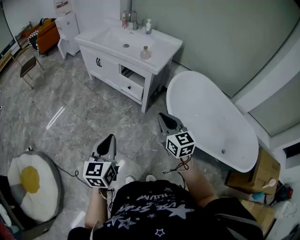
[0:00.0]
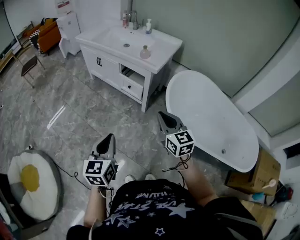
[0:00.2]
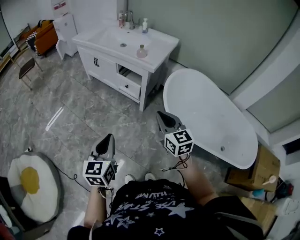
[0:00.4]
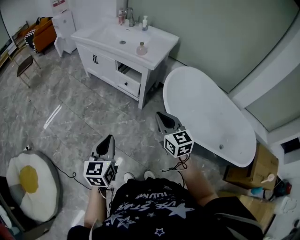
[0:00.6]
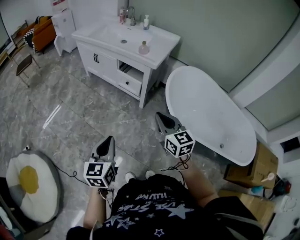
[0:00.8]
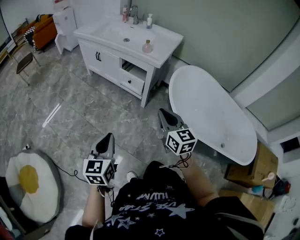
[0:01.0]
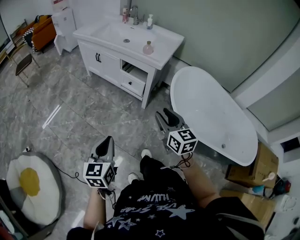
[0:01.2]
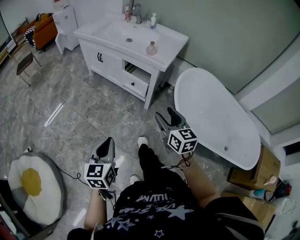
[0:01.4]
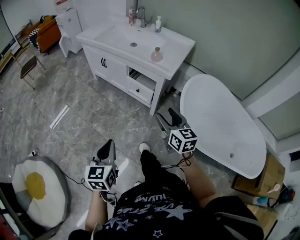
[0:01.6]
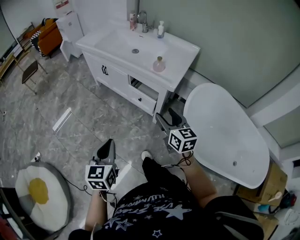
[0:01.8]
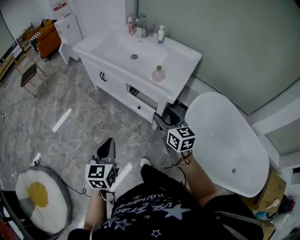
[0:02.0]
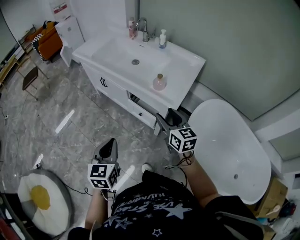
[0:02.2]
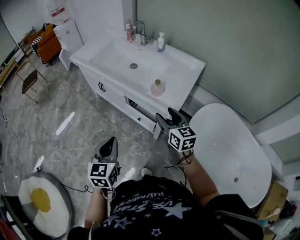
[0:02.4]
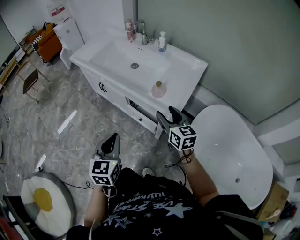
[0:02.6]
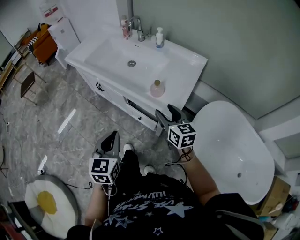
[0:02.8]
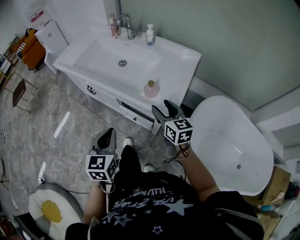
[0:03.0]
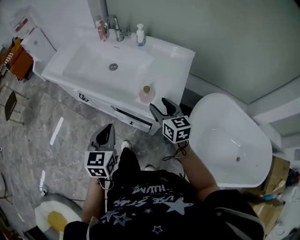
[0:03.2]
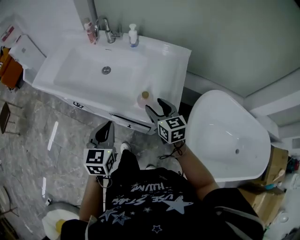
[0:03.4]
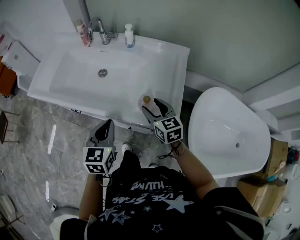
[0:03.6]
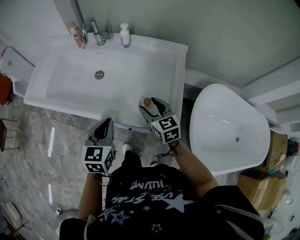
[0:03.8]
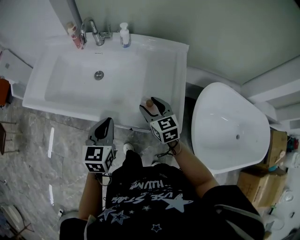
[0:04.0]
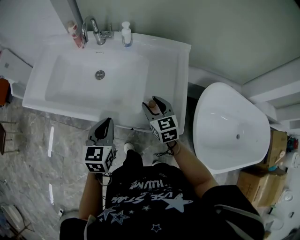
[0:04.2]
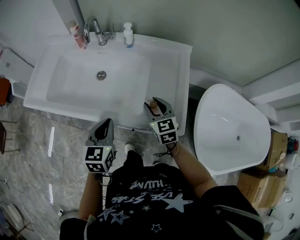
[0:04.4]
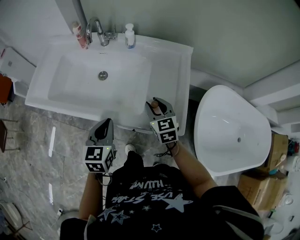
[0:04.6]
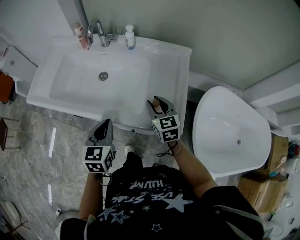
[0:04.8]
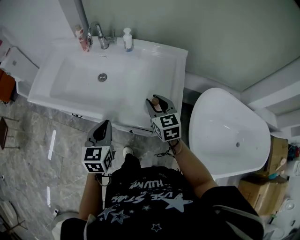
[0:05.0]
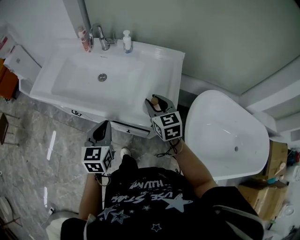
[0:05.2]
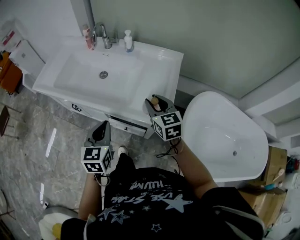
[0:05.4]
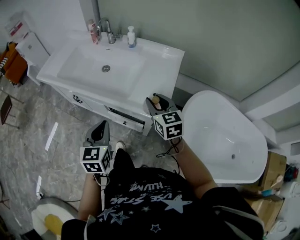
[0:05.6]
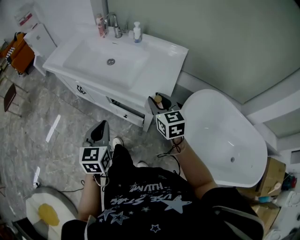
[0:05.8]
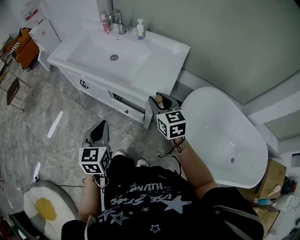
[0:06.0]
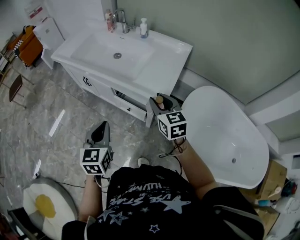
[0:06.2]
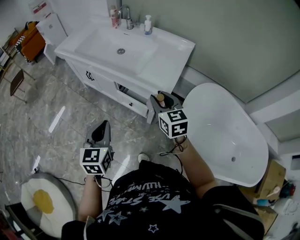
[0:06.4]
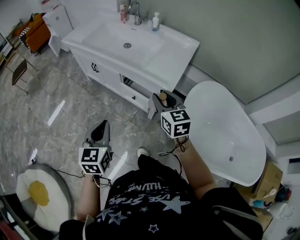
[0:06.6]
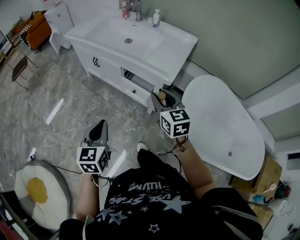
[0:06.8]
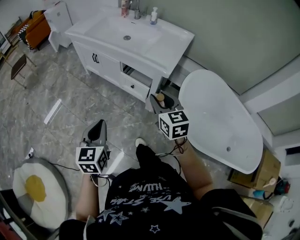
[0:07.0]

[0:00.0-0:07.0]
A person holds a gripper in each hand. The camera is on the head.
0:00.0 to 0:01.4: The left gripper travels to the left and downward by roughly 10 cm; the right gripper ends up roughly 5 cm from where it was, and opens.
0:01.4 to 0:02.8: Both grippers move forward, roughly 40 cm.
0:02.8 to 0:04.2: The right gripper travels forward by some 20 cm, and swivels roughly 30 degrees. The left gripper goes about 30 cm forward, and changes its angle by roughly 20 degrees.
0:04.2 to 0:05.6: The left gripper heads backward, covering roughly 15 cm, while the right gripper moves backward, upward and to the right, roughly 15 cm.
0:05.6 to 0:07.0: The two grippers go about 30 cm backward.

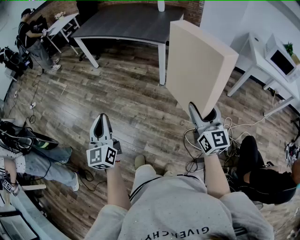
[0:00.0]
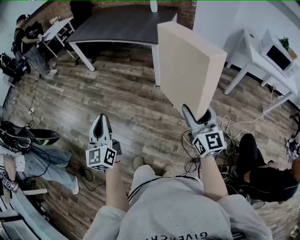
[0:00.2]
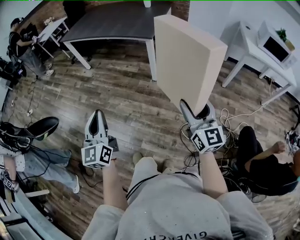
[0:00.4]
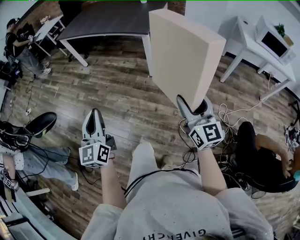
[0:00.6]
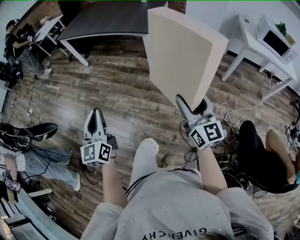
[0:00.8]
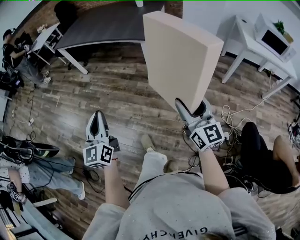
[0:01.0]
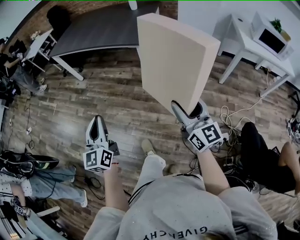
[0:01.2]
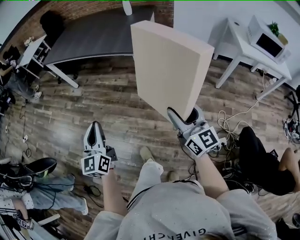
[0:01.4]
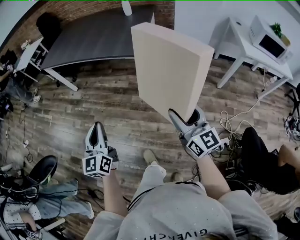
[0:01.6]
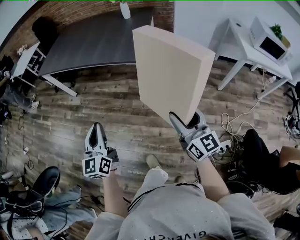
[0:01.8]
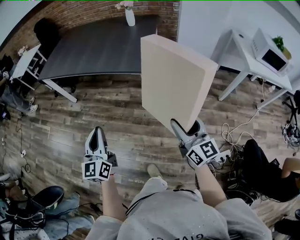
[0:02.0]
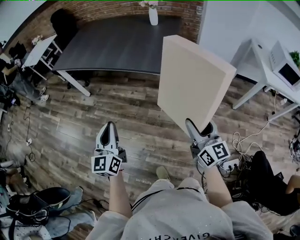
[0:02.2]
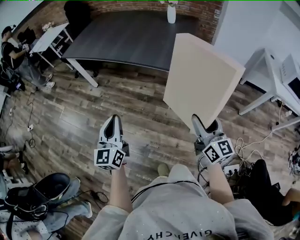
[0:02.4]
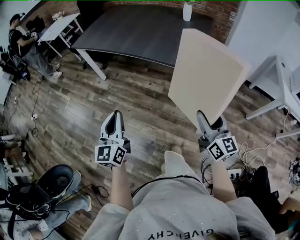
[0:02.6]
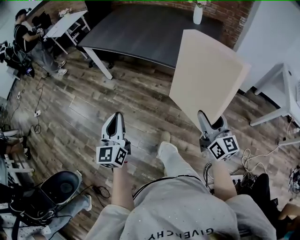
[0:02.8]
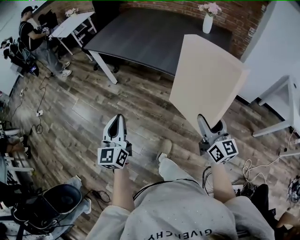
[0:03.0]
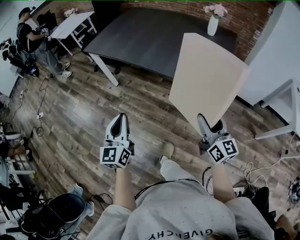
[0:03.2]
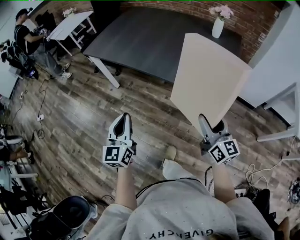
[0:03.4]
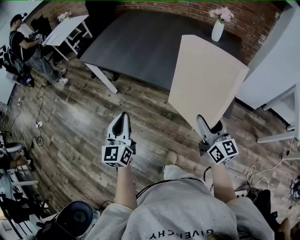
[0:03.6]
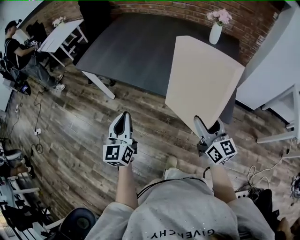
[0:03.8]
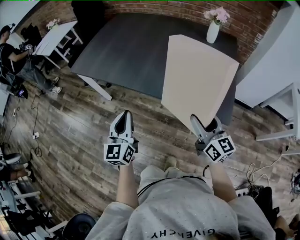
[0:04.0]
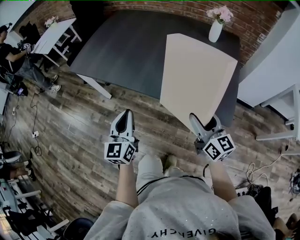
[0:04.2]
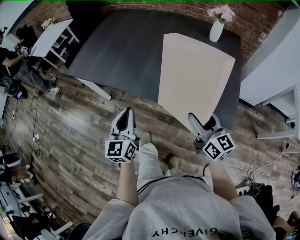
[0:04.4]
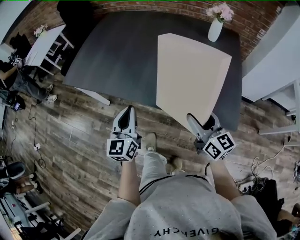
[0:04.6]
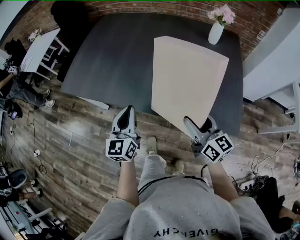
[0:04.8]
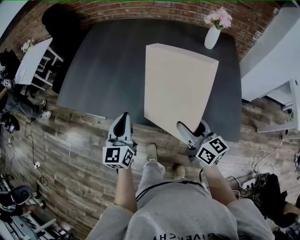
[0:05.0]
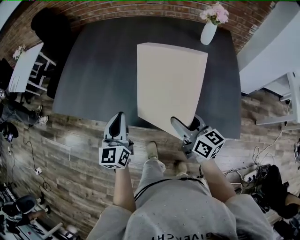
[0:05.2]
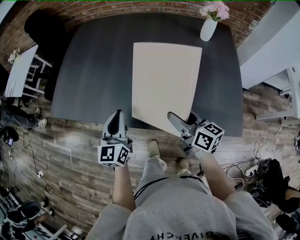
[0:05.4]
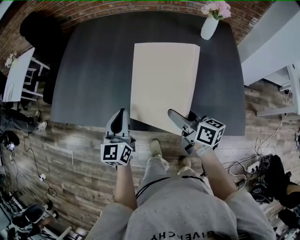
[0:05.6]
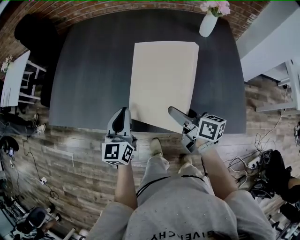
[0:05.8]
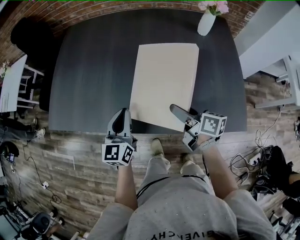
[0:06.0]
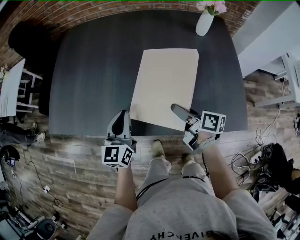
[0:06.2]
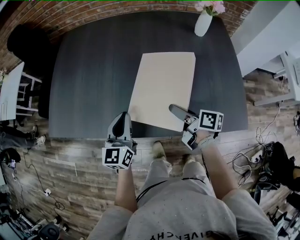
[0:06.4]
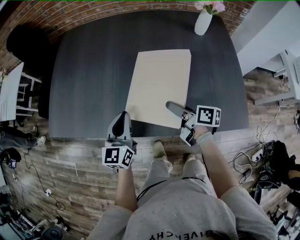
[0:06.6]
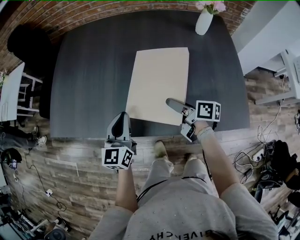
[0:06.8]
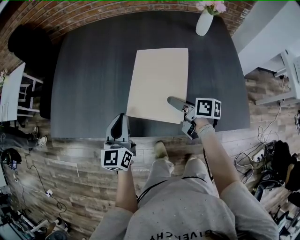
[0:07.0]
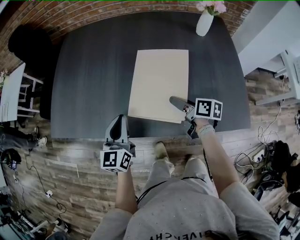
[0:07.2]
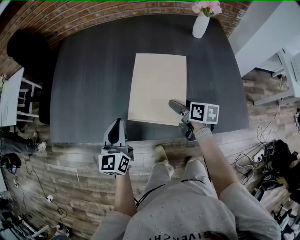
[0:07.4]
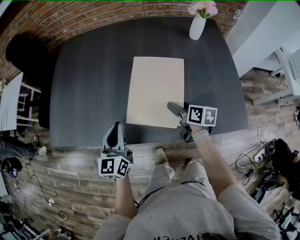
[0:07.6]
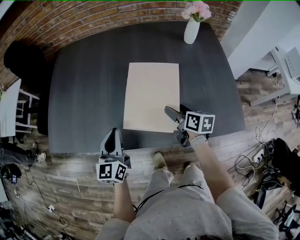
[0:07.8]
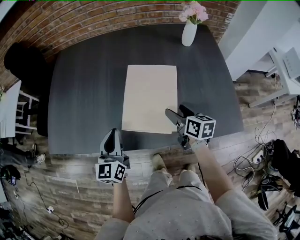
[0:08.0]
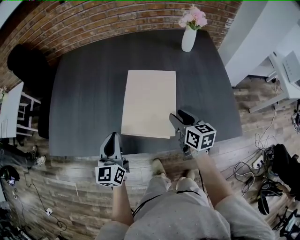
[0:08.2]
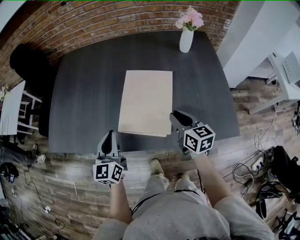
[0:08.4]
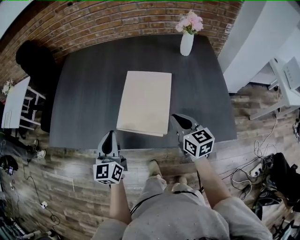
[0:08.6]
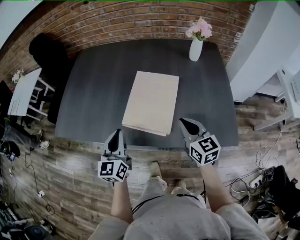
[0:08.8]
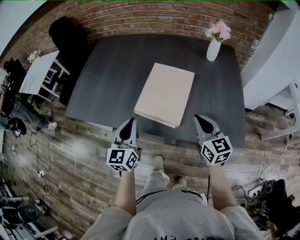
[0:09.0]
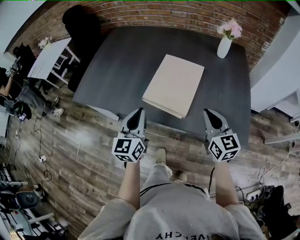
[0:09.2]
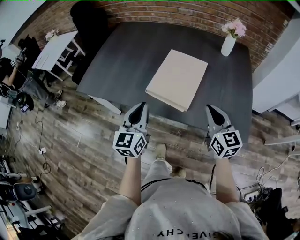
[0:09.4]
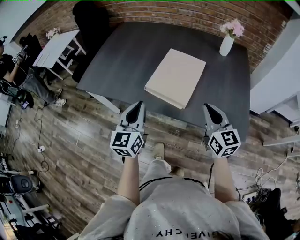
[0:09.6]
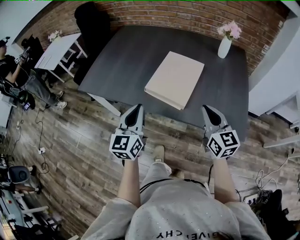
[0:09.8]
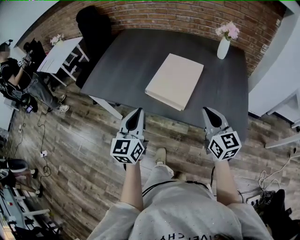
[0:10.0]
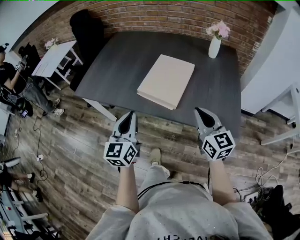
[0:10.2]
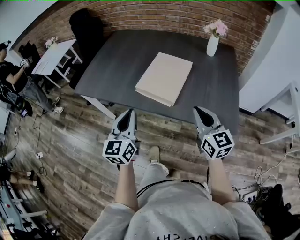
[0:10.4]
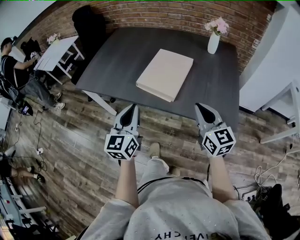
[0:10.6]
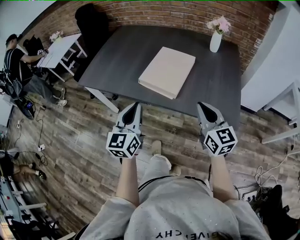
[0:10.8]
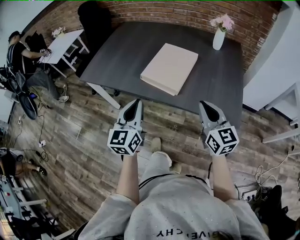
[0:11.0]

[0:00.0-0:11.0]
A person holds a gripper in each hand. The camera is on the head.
0:00.0 to 0:01.6: The grippers both shift forward by some 20 cm.
0:01.6 to 0:03.2: Both grippers are carried forward and to the left, roughly 40 cm.
0:03.2 to 0:04.8: The grippers both shift forward by some 35 cm.
0:04.8 to 0:06.2: The left gripper shifts about 15 cm forward; the right gripper heads forward and downward, covering about 20 cm, and rotates around the line of its fingers by approximately 40 degrees, clockwise from behind.
0:06.2 to 0:07.8: The right gripper moves some 5 cm, and rotates some 20 degrees.
0:07.8 to 0:09.4: The left gripper travels backward, upward and to the right by some 20 cm, while the right gripper is displaced upward and backward by about 25 cm, rotates around the line of its fingers by roughly 40 degrees, counterclockwise from behind, and closes up.
0:09.4 to 0:11.0: The two grippers go roughly 10 cm backward.

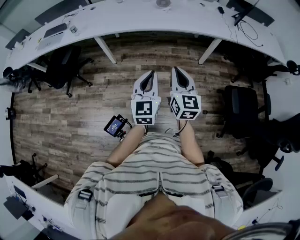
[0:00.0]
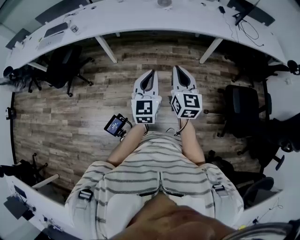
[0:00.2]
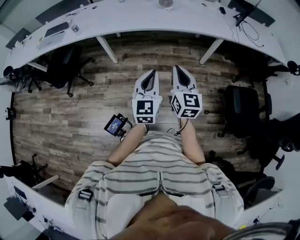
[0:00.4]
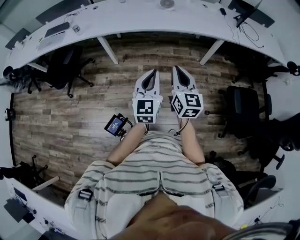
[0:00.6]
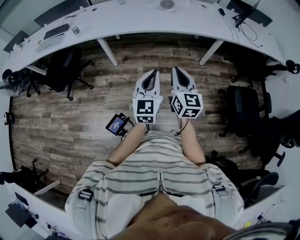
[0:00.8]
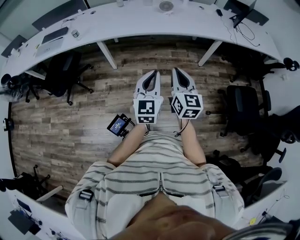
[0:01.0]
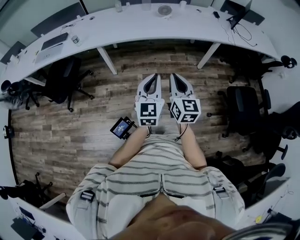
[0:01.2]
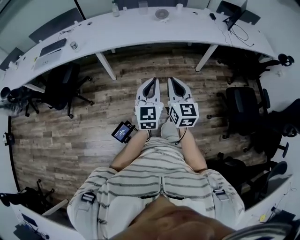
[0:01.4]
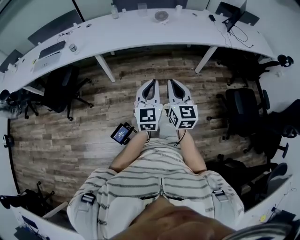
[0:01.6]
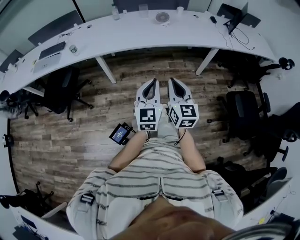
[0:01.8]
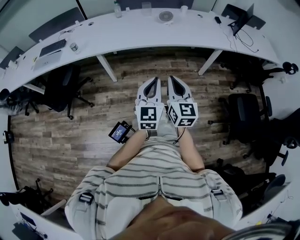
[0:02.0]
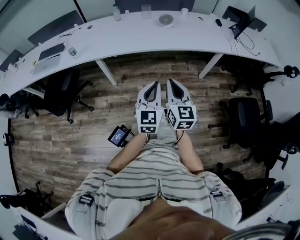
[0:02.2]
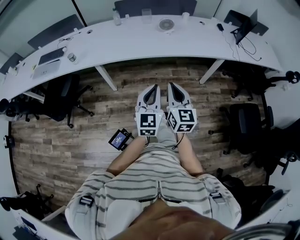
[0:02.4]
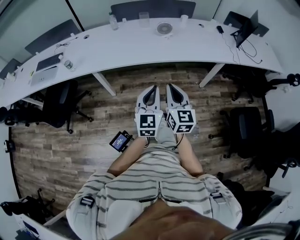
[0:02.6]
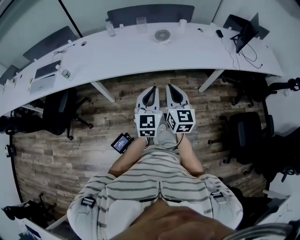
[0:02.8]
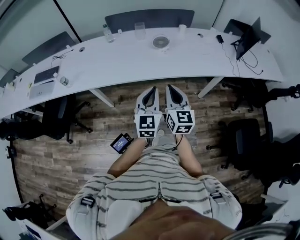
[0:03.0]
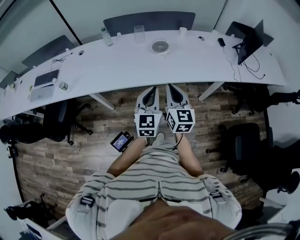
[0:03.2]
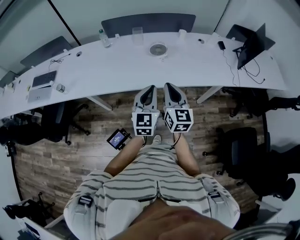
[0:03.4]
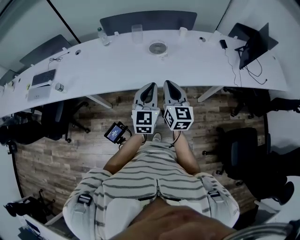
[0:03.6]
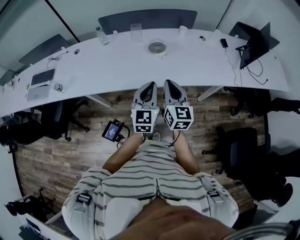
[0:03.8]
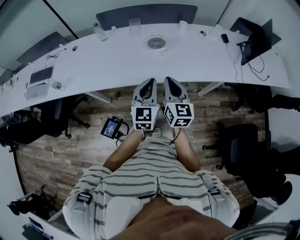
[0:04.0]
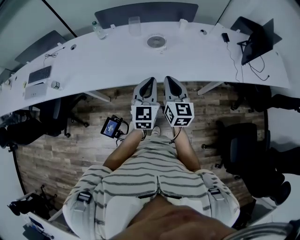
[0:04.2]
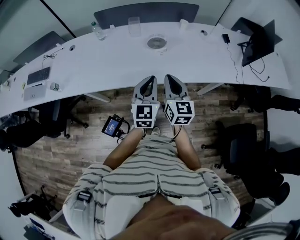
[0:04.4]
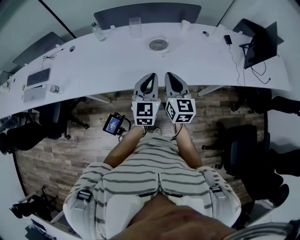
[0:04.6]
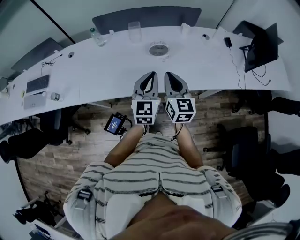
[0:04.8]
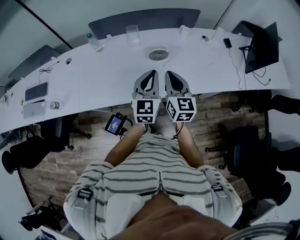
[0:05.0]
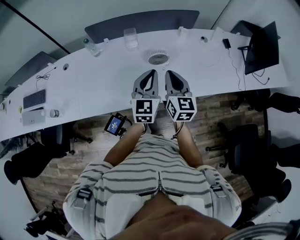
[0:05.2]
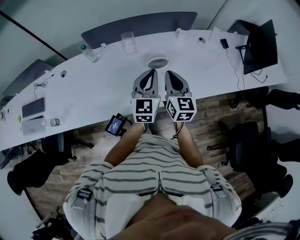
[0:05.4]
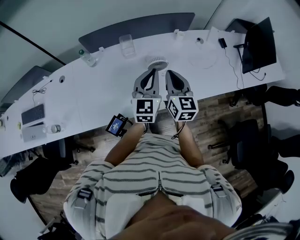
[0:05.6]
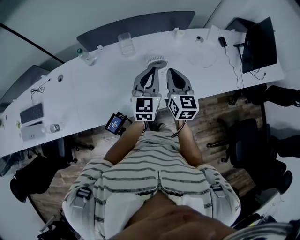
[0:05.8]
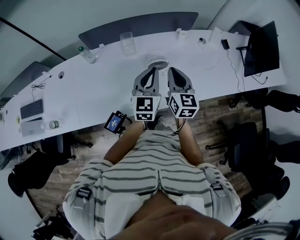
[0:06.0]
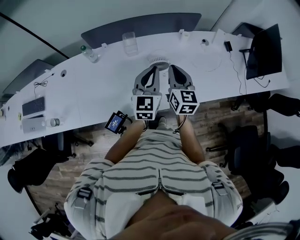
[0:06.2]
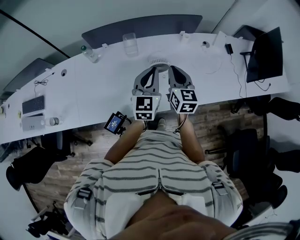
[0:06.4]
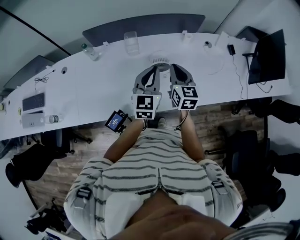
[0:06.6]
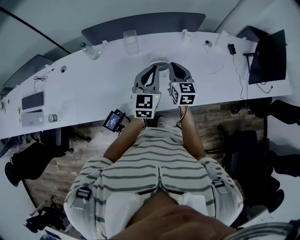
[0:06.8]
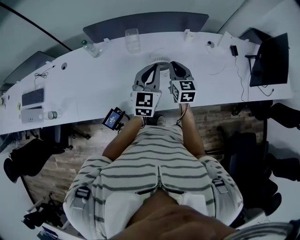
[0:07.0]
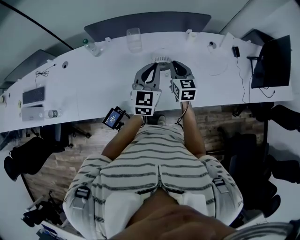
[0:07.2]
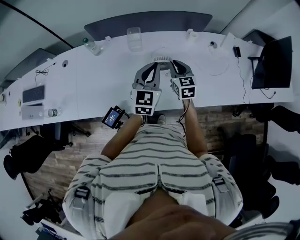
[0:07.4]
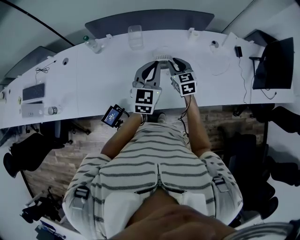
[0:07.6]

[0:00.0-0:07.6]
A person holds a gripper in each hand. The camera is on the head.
0:00.0 to 0:01.6: Both grippers travel together to the left, about 10 cm.
0:01.6 to 0:03.0: The grippers both shift forward by roughly 30 cm.
0:03.0 to 0:04.6: Both grippers travel together forward, roughly 20 cm.
0:04.6 to 0:06.0: Both grippers move forward, roughly 20 cm.
0:06.0 to 0:07.6: The right gripper goes approximately 15 cm downward and forward, and swivels approximately 30 degrees. Meanwhile the left gripper ends up roughly 5 cm from where it was.